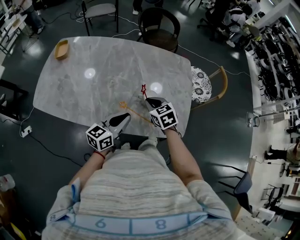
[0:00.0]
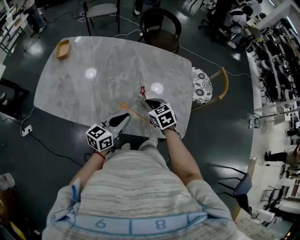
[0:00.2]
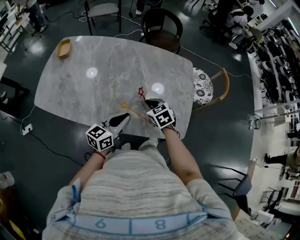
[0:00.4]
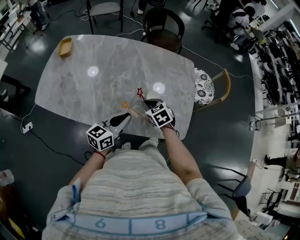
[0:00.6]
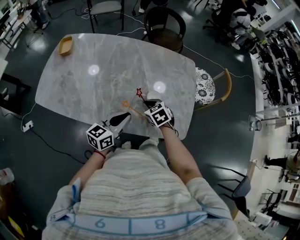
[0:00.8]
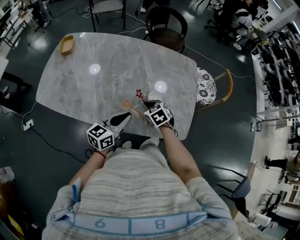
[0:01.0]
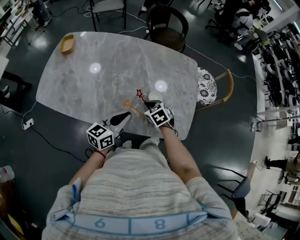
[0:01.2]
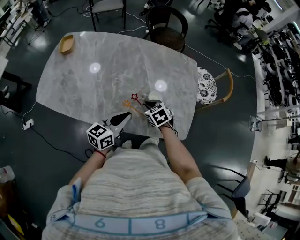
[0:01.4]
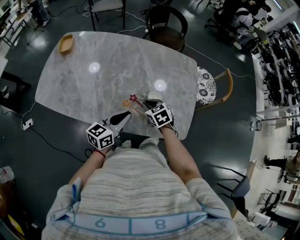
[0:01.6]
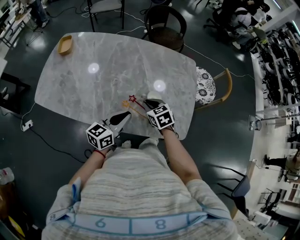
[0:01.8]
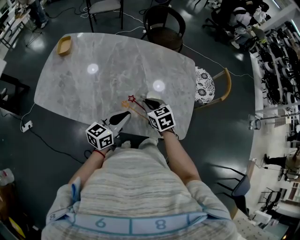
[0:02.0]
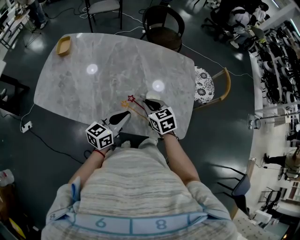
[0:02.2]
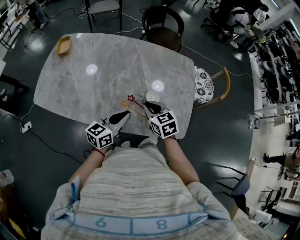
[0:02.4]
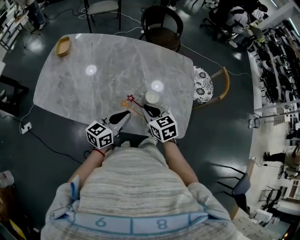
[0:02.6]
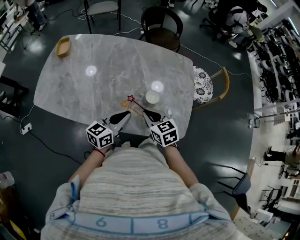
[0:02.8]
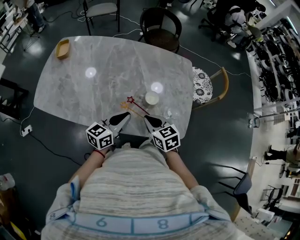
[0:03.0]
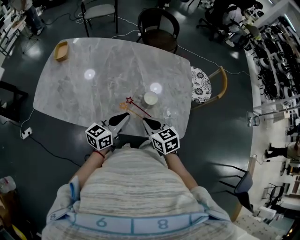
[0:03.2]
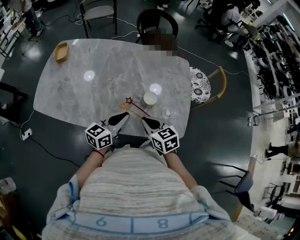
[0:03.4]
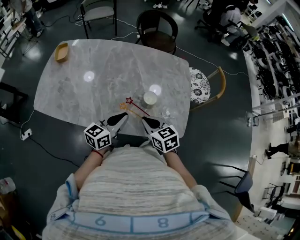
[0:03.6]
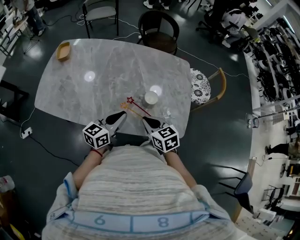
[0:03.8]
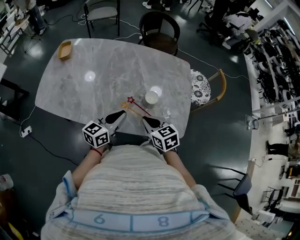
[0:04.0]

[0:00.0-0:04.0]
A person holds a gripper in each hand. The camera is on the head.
0:00.0 to 0:01.4: The right gripper goes roughly 10 cm downward.
0:01.4 to 0:02.6: The right gripper moves upward, roughly 10 cm.
0:02.6 to 0:04.0: The right gripper goes roughly 5 cm backward.

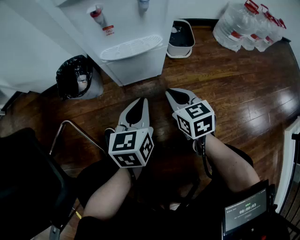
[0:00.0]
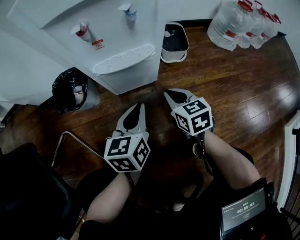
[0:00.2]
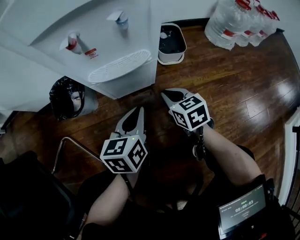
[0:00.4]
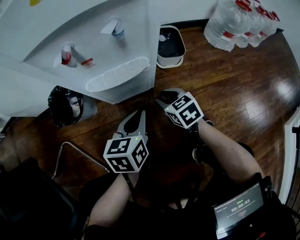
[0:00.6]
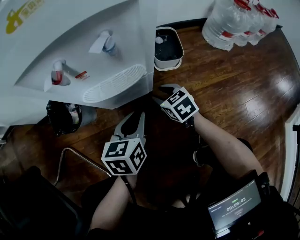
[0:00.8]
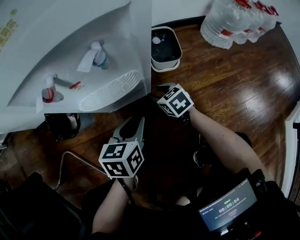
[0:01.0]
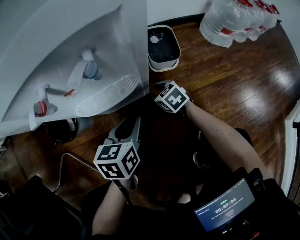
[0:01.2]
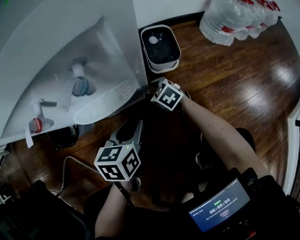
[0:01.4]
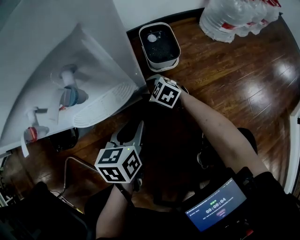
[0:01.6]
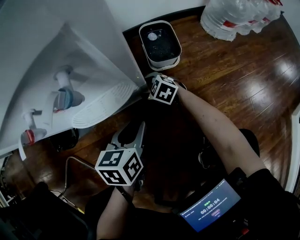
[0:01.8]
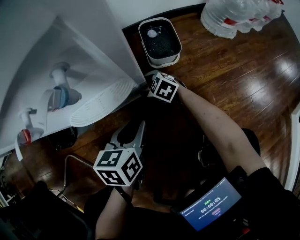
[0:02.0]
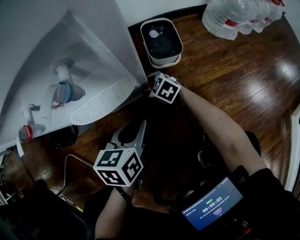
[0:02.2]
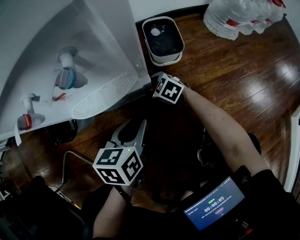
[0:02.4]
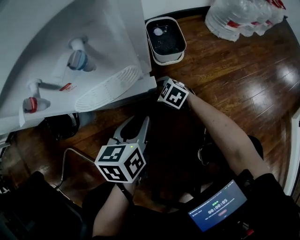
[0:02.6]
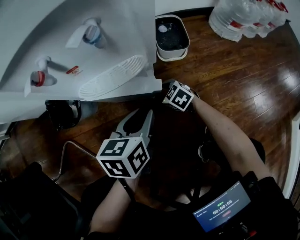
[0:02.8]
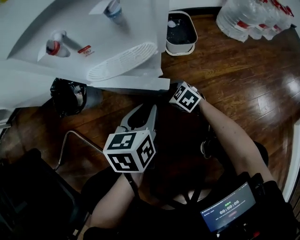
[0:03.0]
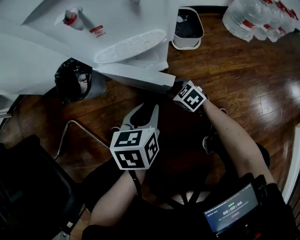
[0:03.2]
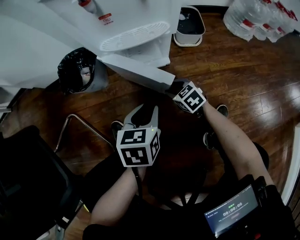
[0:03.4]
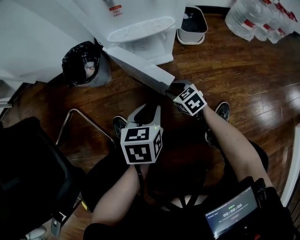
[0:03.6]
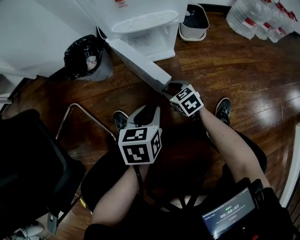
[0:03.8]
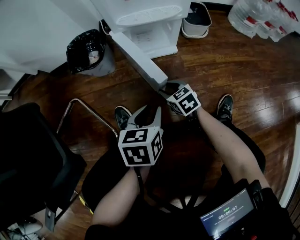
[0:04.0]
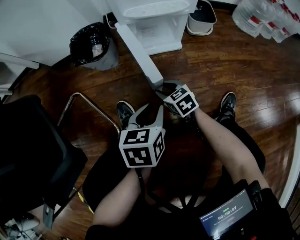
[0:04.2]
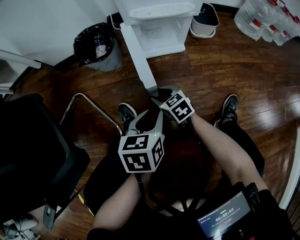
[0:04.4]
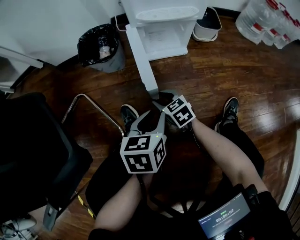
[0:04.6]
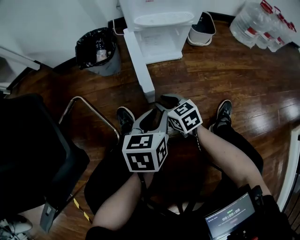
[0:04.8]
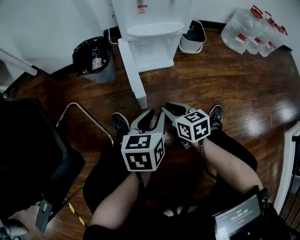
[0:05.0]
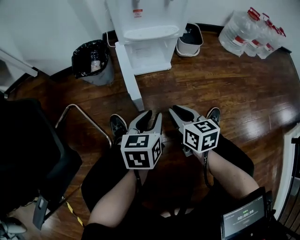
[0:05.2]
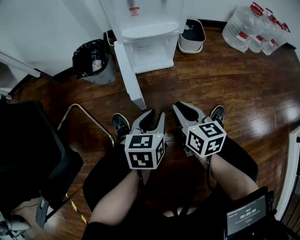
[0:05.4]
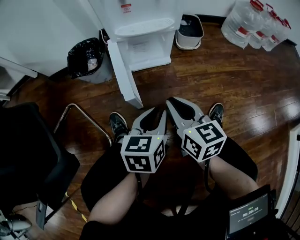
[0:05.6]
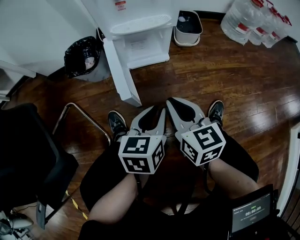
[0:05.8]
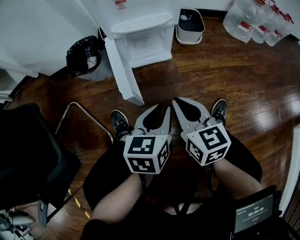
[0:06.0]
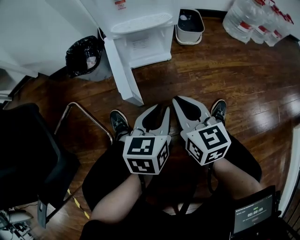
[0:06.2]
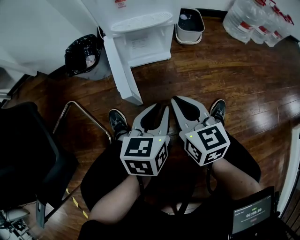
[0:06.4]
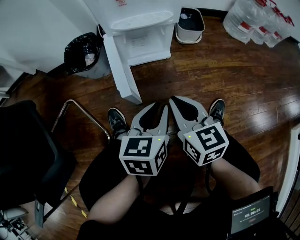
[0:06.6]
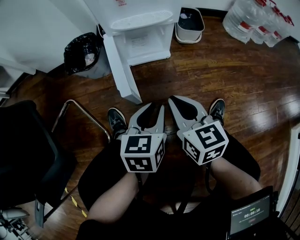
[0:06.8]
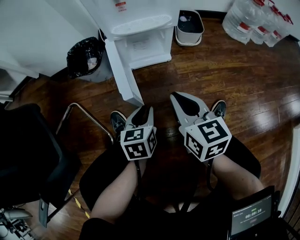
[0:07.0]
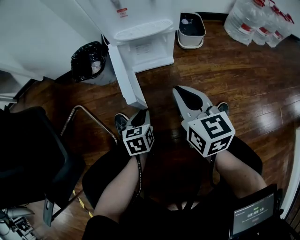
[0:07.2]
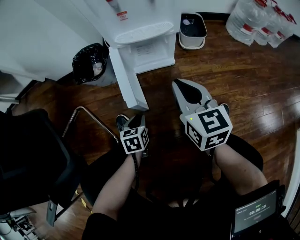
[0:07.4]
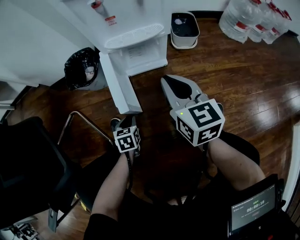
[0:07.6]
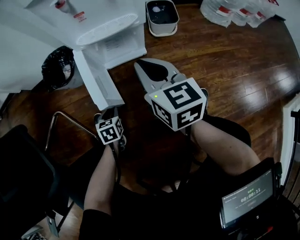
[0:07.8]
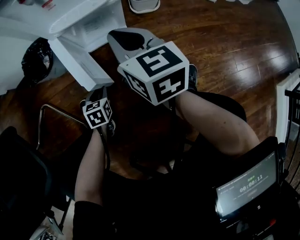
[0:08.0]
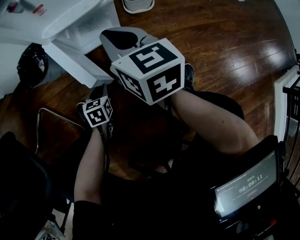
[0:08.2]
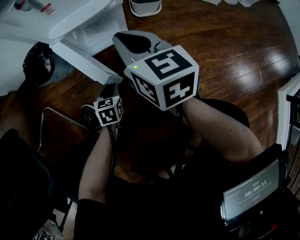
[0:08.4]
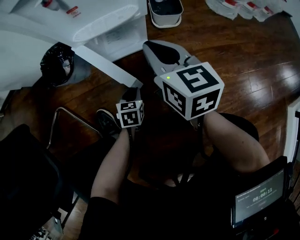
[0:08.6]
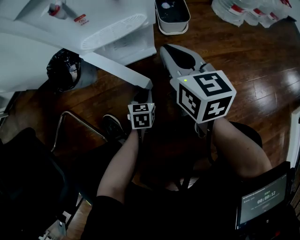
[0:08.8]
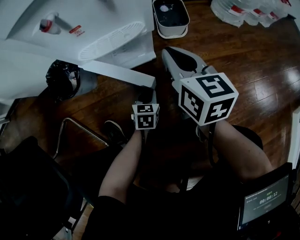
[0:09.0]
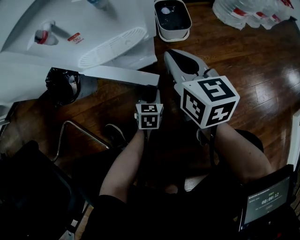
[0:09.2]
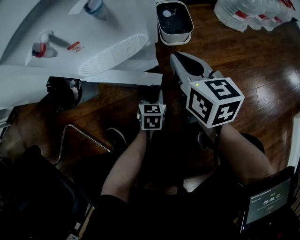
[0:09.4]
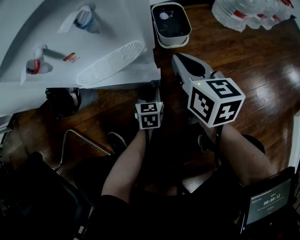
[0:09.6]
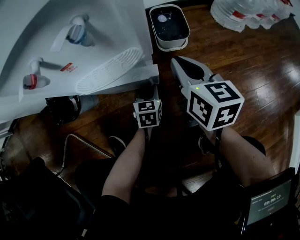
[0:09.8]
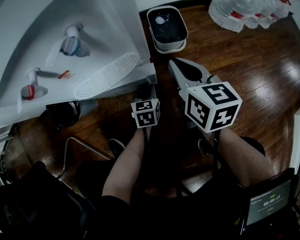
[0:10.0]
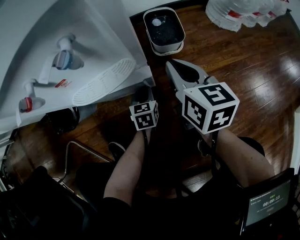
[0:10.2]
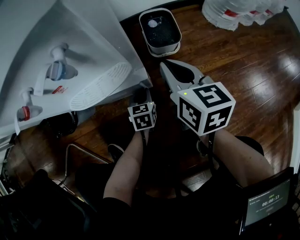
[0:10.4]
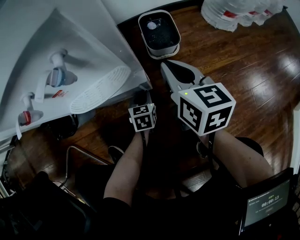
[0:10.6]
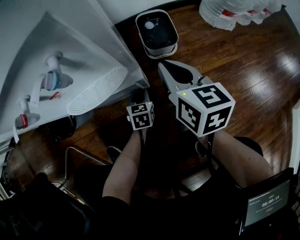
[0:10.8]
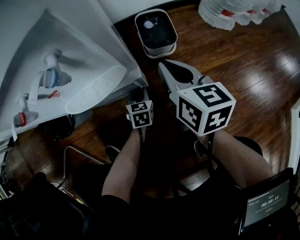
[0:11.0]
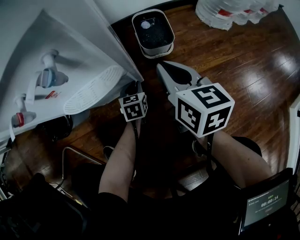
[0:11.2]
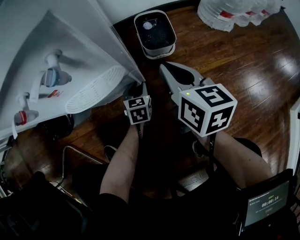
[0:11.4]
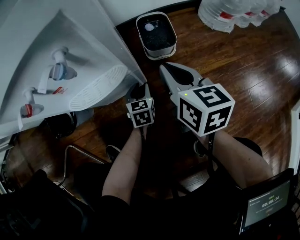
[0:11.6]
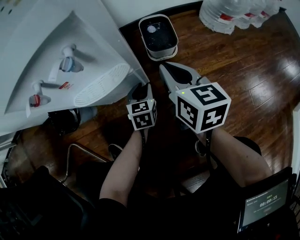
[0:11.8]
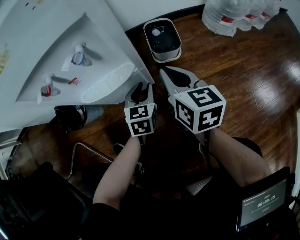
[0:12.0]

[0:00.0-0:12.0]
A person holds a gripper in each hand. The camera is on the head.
0:00.0 to 0:01.6: The left gripper shifts about 15 cm forward, downward and to the right, rotates some 20 degrees, and opens, while the right gripper moves forward and downward, roughly 25 cm, changes its angle by about 40 degrees, and opens its fingers.
0:01.6 to 0:03.0: The left gripper moves backward, about 5 cm, while the right gripper heads backward, covering roughly 10 cm.
0:03.0 to 0:04.4: The left gripper heads backward and to the left, covering approximately 25 cm. The right gripper heads to the left and backward, covering about 25 cm.
0:04.4 to 0:06.0: The right gripper goes about 25 cm upward and to the right, swivels about 30 degrees, and closes up, while the left gripper goes some 10 cm to the right and upward.
0:06.0 to 0:07.6: The right gripper travels forward by roughly 10 cm, while the left gripper goes approximately 25 cm downward and to the left, and changes its angle by approximately 30 degrees.
0:07.6 to 0:09.0: The right gripper is displaced forward and to the right by about 10 cm. Meanwhile the left gripper moves to the right and forward, approximately 20 cm, and changes its angle by about 20 degrees.
0:09.0 to 0:10.4: The left gripper travels forward by approximately 15 cm. Meanwhile the right gripper heads forward, covering some 10 cm.
0:10.4 to 0:12.0: The left gripper is displaced upward by approximately 15 cm.

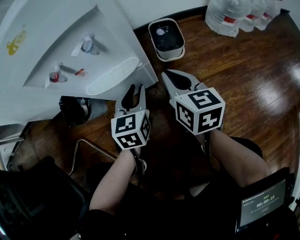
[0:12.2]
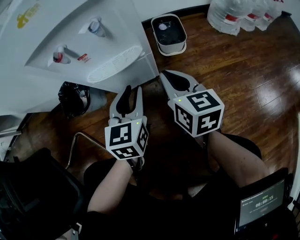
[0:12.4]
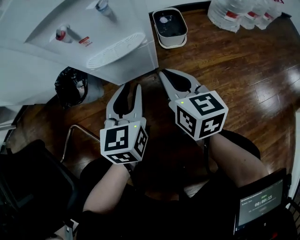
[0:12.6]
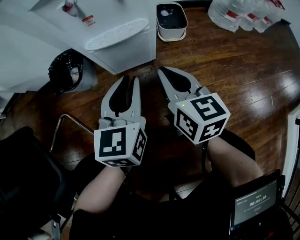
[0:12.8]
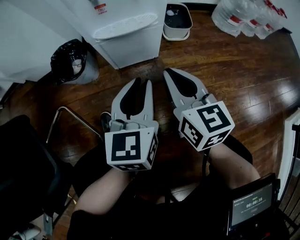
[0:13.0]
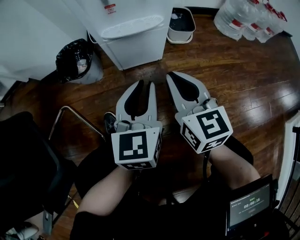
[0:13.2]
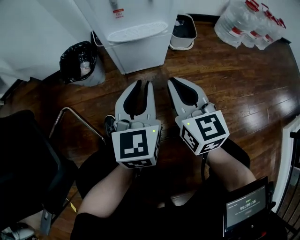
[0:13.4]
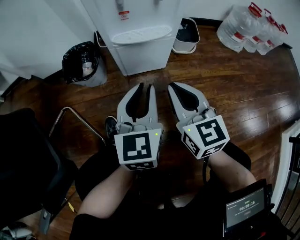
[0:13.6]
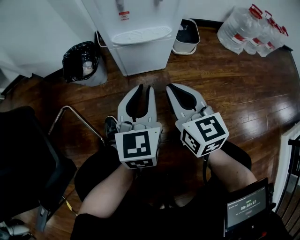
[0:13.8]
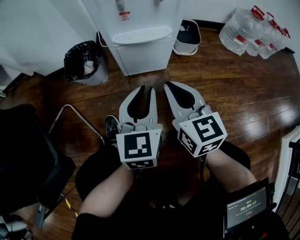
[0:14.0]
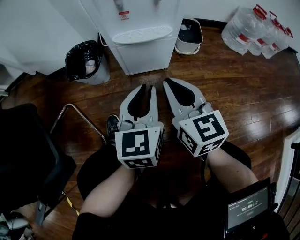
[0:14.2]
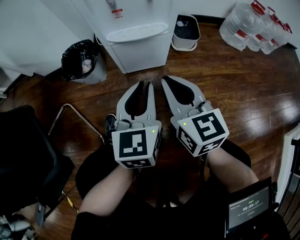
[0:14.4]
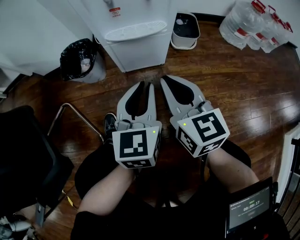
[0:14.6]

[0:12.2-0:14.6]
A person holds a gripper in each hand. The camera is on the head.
0:12.2 to 0:13.4: The left gripper shifts roughly 20 cm backward, upward and to the left, while the right gripper moves backward and to the left, some 20 cm.
0:13.4 to 0:14.6: There are only small adjustments of the grippers.

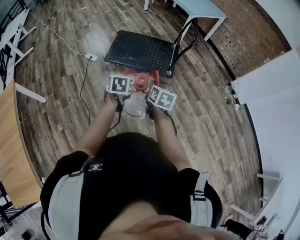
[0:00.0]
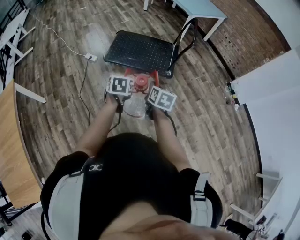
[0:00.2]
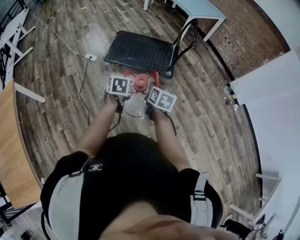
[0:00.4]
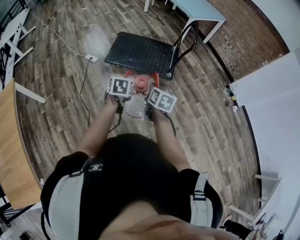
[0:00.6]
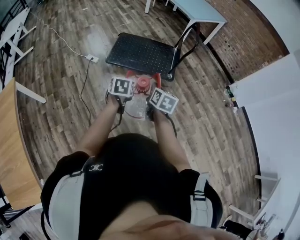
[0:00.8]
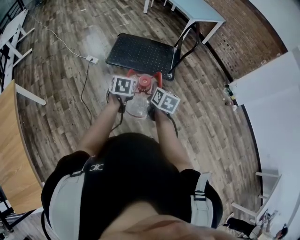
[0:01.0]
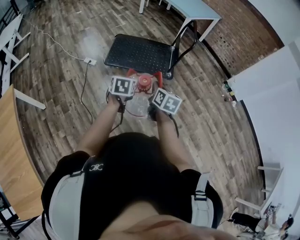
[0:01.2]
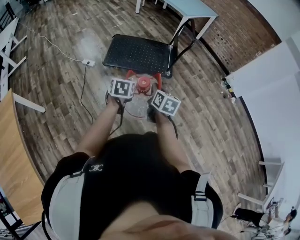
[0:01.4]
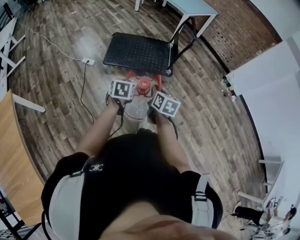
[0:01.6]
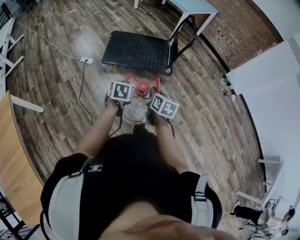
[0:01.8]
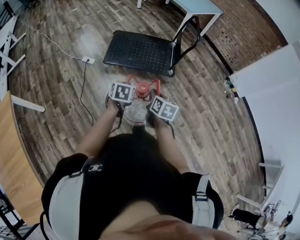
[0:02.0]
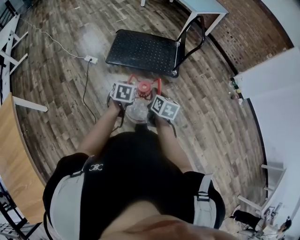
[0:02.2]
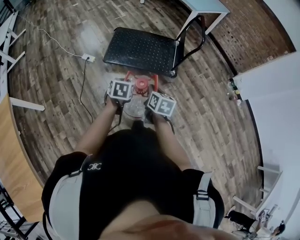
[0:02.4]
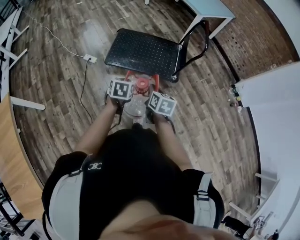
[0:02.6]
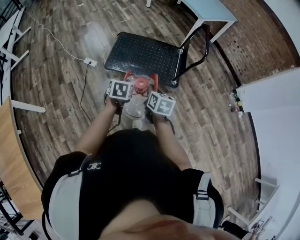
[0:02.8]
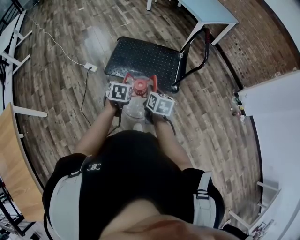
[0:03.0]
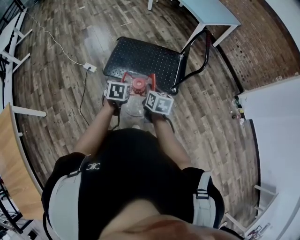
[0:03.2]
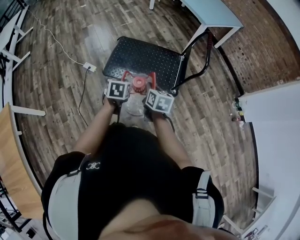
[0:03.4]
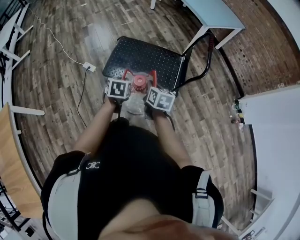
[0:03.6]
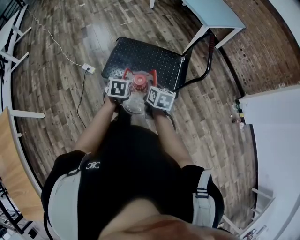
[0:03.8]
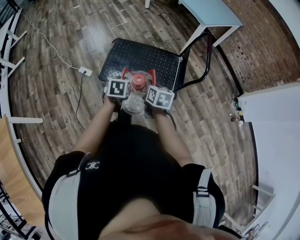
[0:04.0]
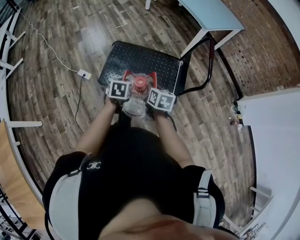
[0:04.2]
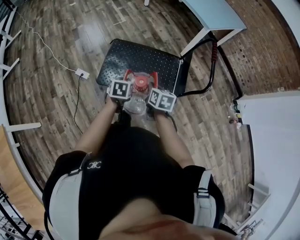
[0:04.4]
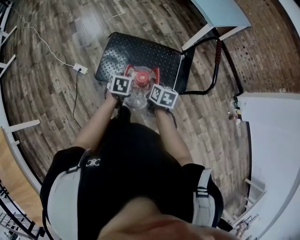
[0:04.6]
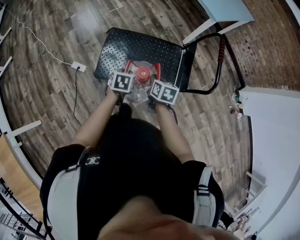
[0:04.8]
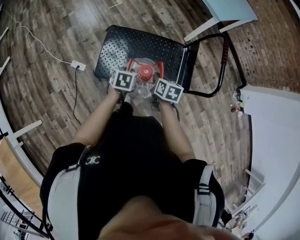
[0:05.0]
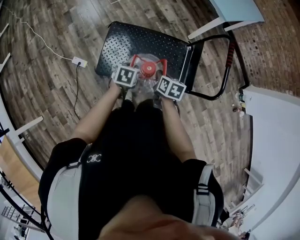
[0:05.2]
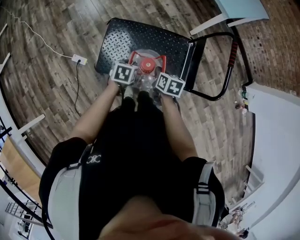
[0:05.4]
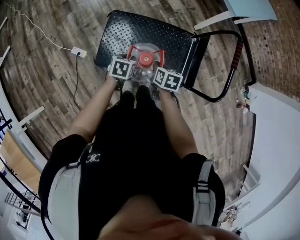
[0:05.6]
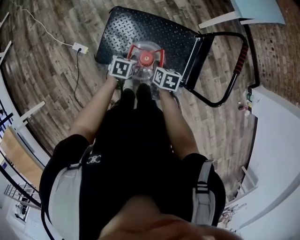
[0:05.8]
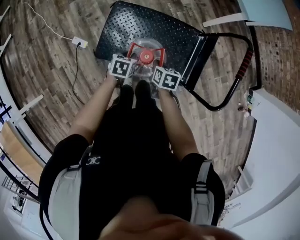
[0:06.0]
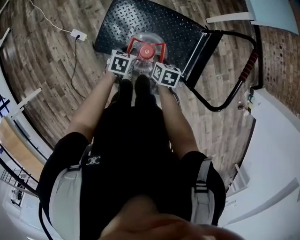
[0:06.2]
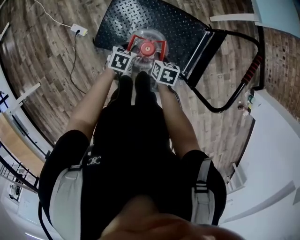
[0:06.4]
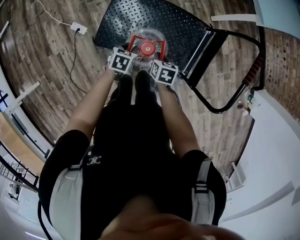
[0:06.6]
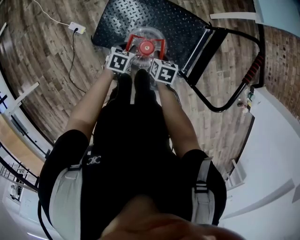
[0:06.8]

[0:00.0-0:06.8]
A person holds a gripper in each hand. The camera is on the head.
0:00.0 to 0:01.4: Both grippers move to the left, about 5 cm.
0:01.4 to 0:02.8: Both grippers travel together forward, about 20 cm.
0:02.8 to 0:04.0: The two grippers go some 15 cm forward.
0:04.0 to 0:05.4: The grippers both shift forward and downward by roughly 25 cm.
0:05.4 to 0:06.8: The grippers both shift downward by some 10 cm.
